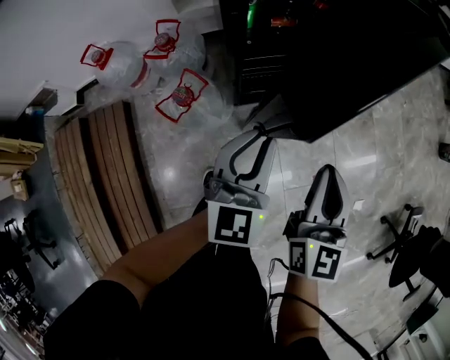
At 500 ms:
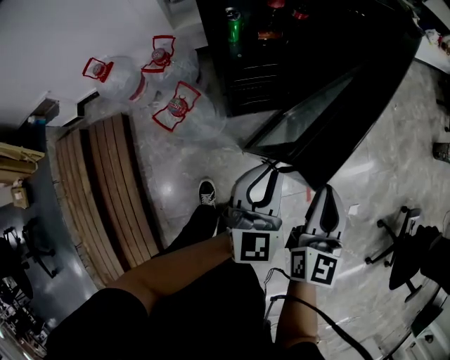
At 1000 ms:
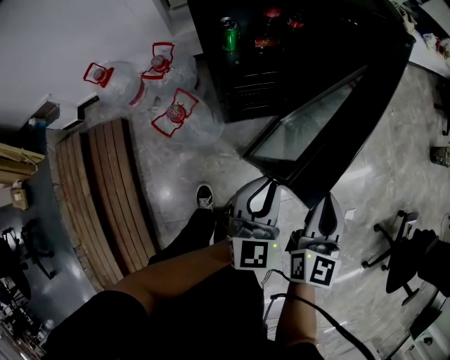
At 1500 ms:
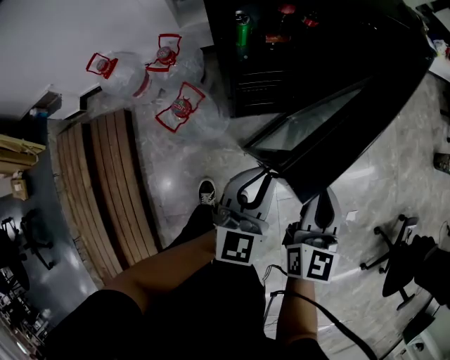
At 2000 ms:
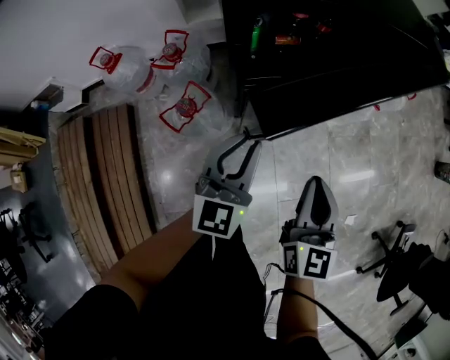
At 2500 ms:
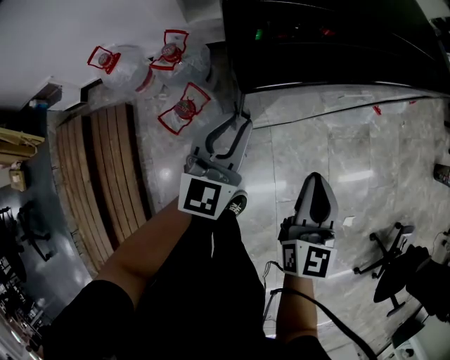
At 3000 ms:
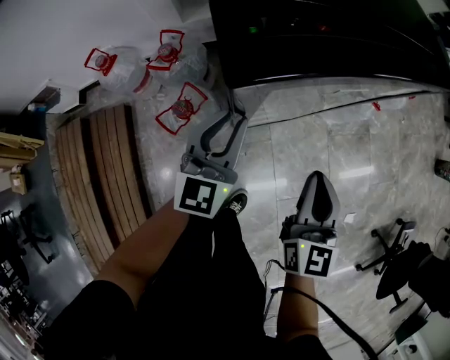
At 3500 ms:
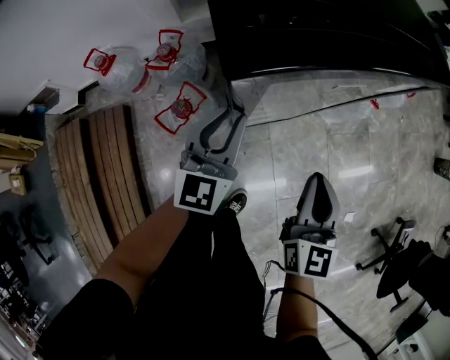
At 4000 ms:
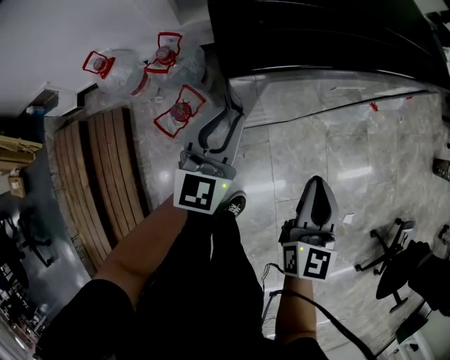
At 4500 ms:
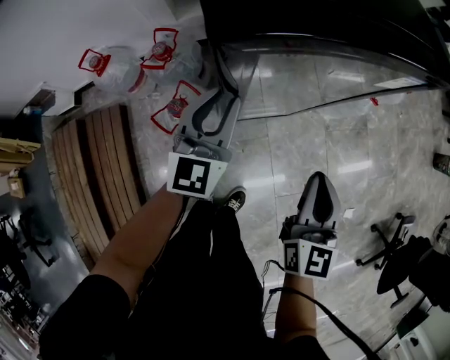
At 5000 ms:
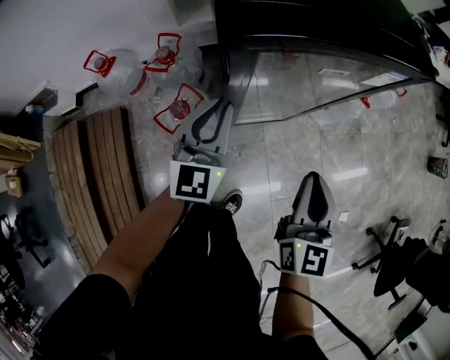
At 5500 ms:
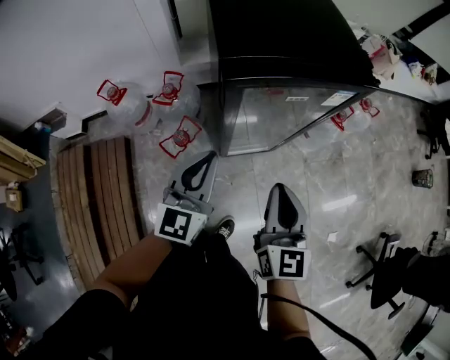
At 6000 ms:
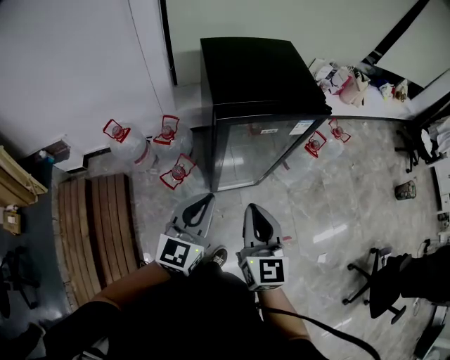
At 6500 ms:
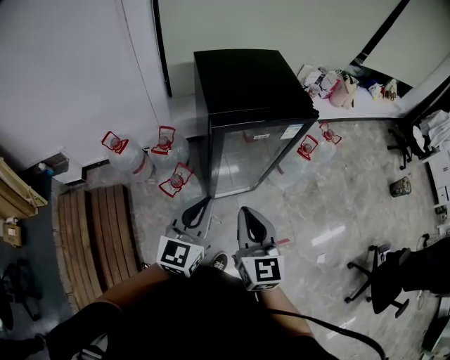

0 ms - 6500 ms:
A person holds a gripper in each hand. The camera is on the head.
0 ms - 2000 ms: The left gripper goes to the right and returns, approximately 10 cm each way. The right gripper moves approximately 5 cm to the right and comes back.
2000 ms - 4500 ms: The left gripper is displaced forward and to the left by some 10 cm.
4500 ms - 6500 ms: The left gripper is displaced upward and backward by roughly 30 cm. The right gripper heads upward, backward and to the left, covering about 30 cm.

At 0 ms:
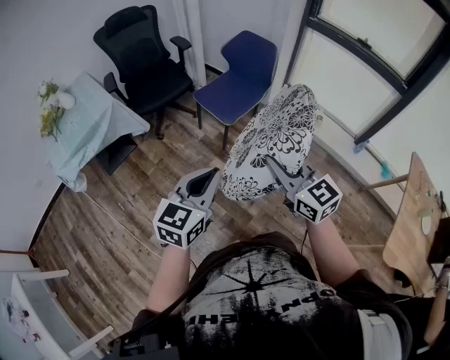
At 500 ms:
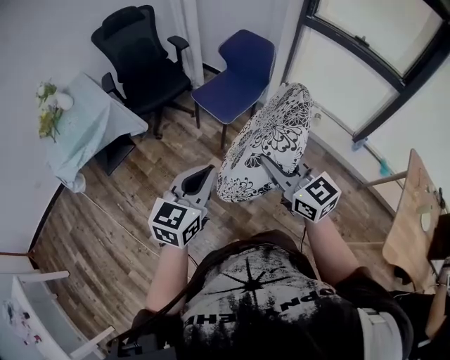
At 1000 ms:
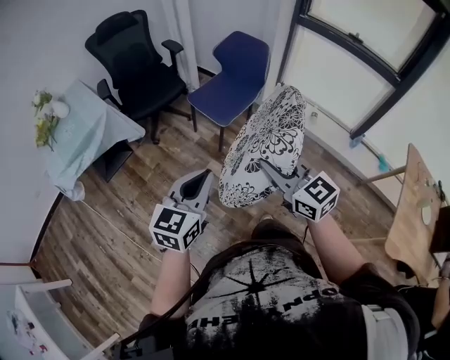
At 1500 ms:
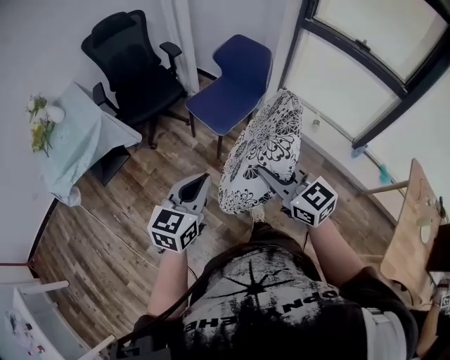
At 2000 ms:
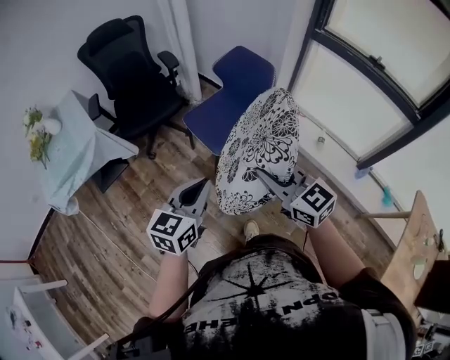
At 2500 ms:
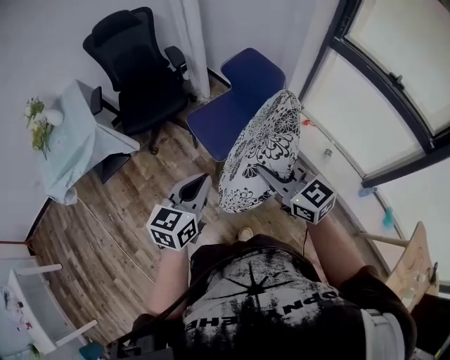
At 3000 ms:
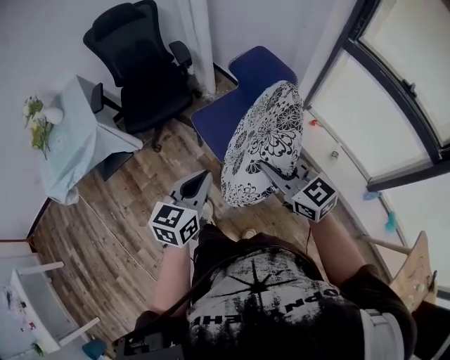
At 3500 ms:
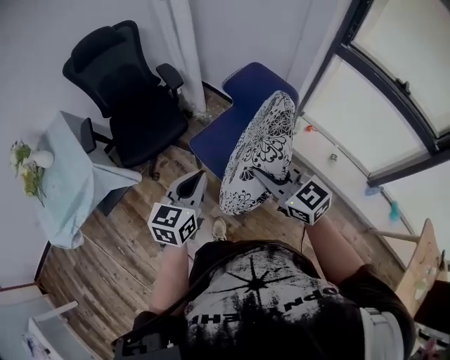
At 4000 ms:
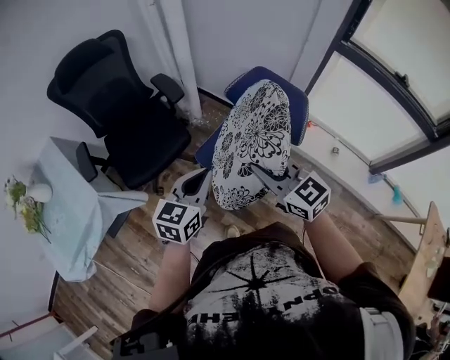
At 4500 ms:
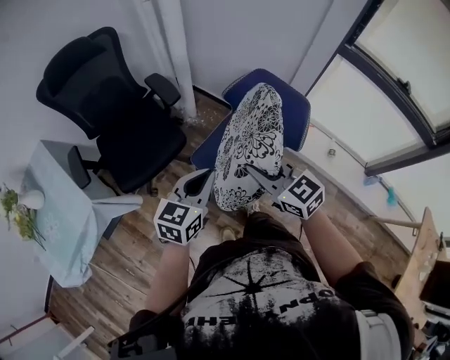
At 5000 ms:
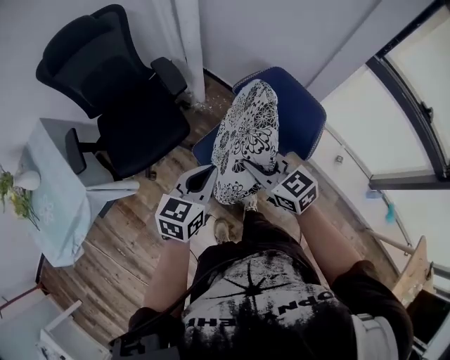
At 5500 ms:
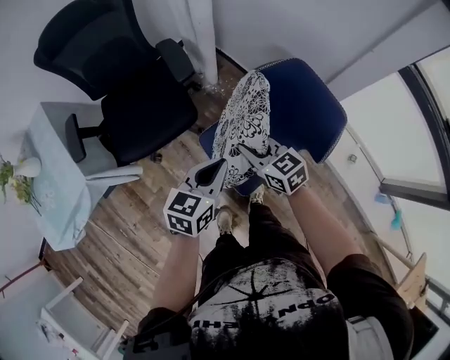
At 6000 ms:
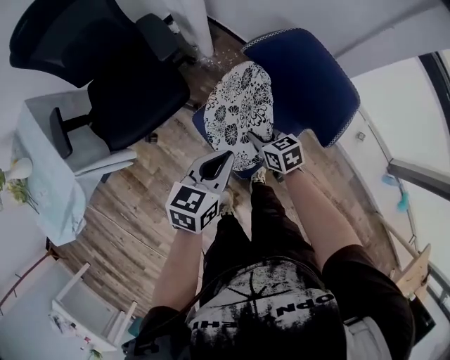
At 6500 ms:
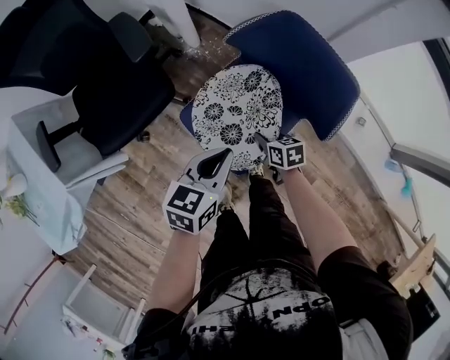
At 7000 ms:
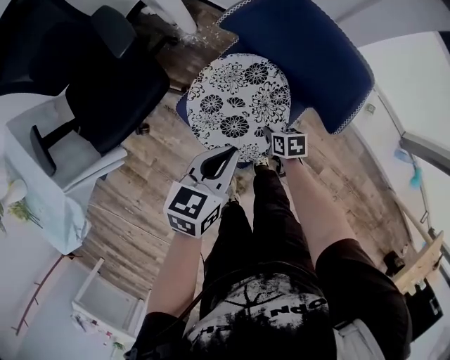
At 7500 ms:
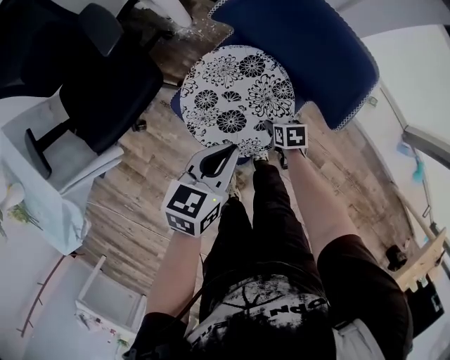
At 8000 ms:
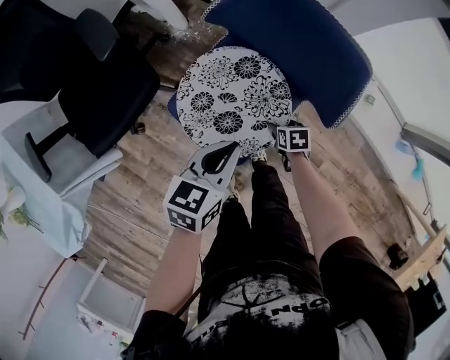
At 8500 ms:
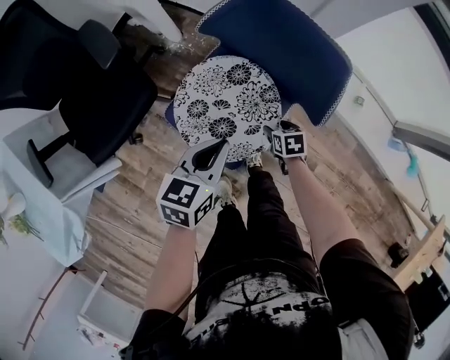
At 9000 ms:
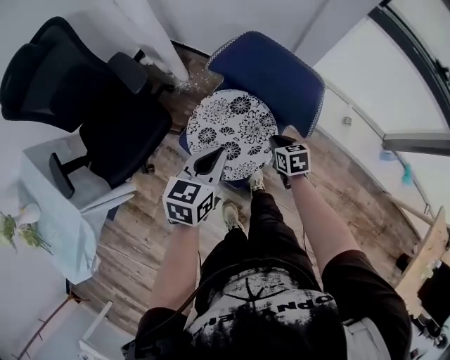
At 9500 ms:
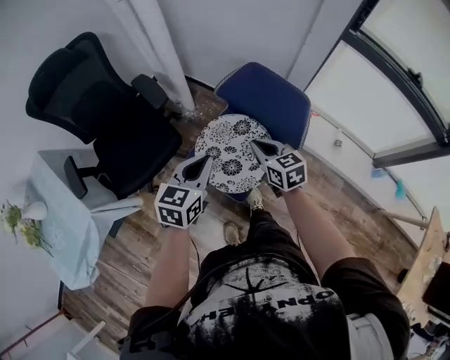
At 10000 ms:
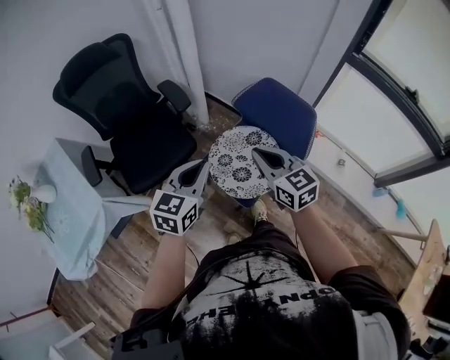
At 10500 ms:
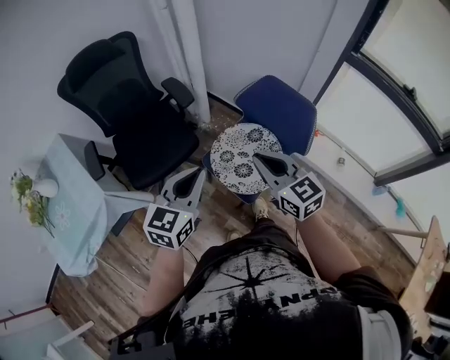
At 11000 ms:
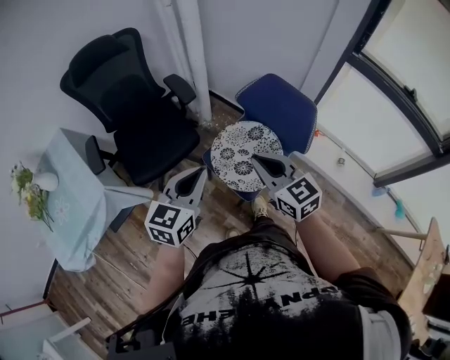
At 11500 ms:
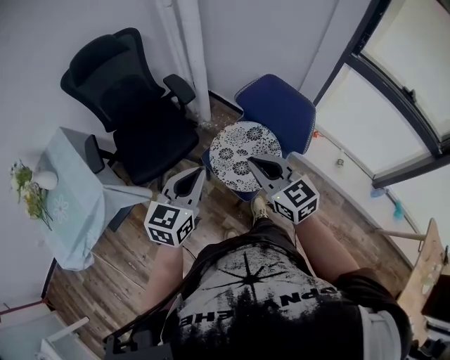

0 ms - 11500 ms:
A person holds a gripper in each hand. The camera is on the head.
0 ms - 2000 ms: Both grippers travel together forward and to the right, some 20 cm.
2000 ms - 4000 ms: Both grippers travel together forward, roughly 35 cm.
4000 ms - 6000 ms: The right gripper is displaced downward and forward by approximately 40 cm, and rotates roughly 40 degrees, while the left gripper shifts roughly 20 cm downward, forward and to the right.
6000 ms - 7500 ms: The right gripper heads downward and to the right, covering approximately 25 cm, turns by some 40 degrees, and opens; the left gripper is displaced downward and to the right by roughly 10 cm.
7500 ms - 9500 ms: The right gripper shifts approximately 40 cm upward, tilts its fingers some 40 degrees upward, and closes up; the left gripper goes about 20 cm upward and to the left, and rotates about 20 degrees.
9500 ms - 11500 ms: The right gripper travels upward, backward and to the left by about 25 cm, and turns by approximately 30 degrees, while the left gripper goes roughly 20 cm backward, upward and to the left.

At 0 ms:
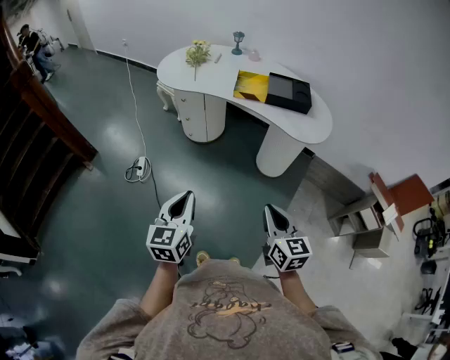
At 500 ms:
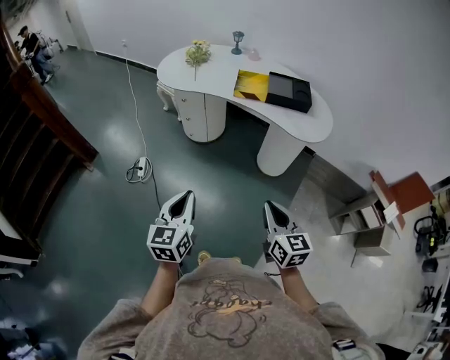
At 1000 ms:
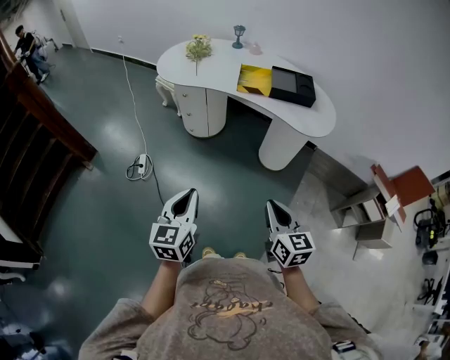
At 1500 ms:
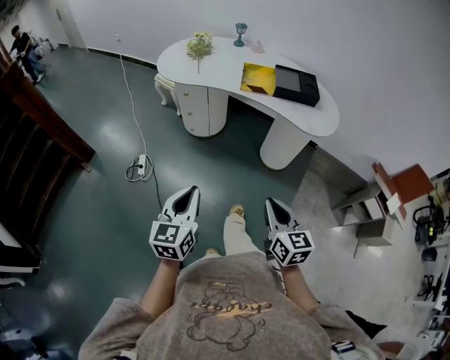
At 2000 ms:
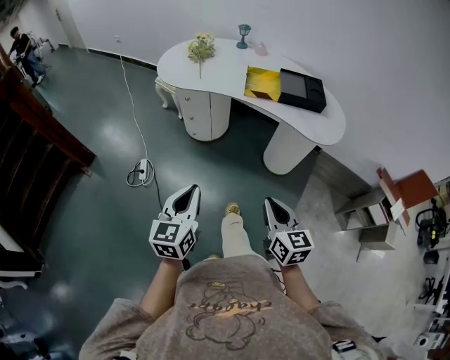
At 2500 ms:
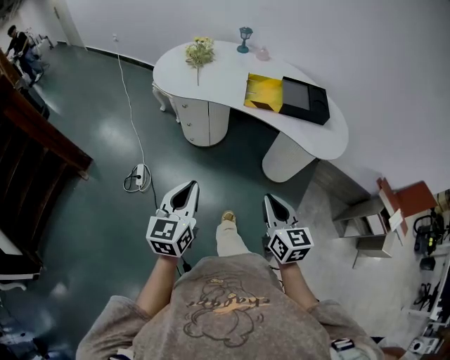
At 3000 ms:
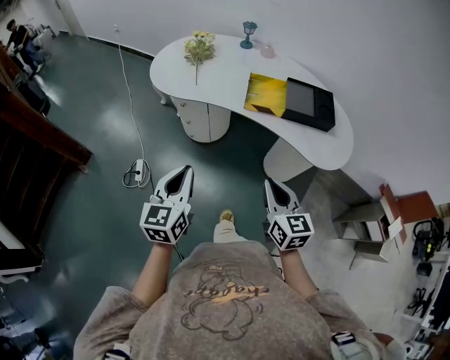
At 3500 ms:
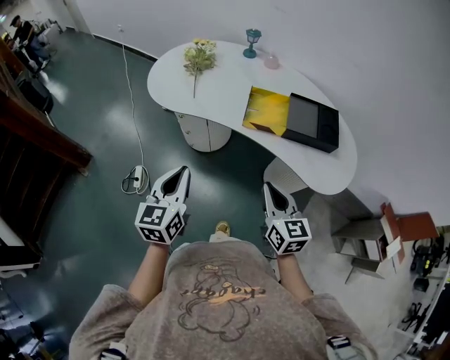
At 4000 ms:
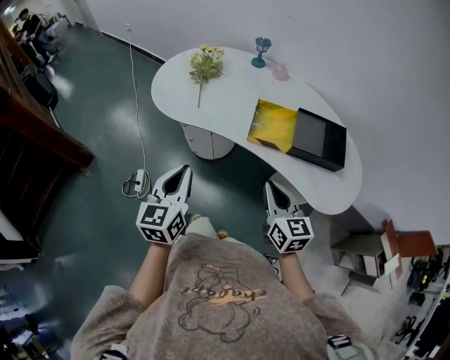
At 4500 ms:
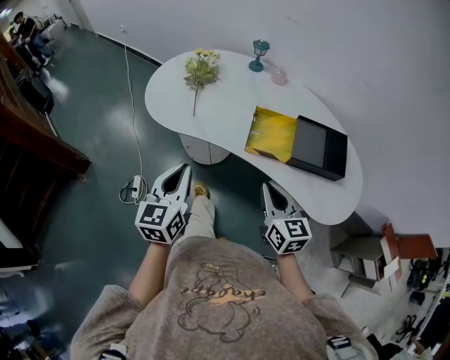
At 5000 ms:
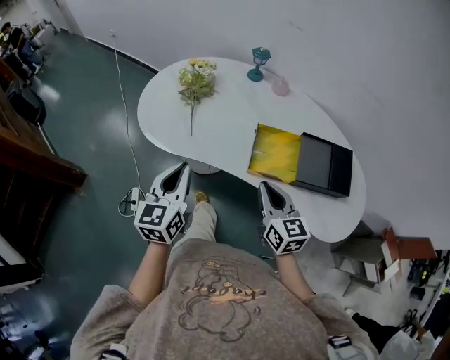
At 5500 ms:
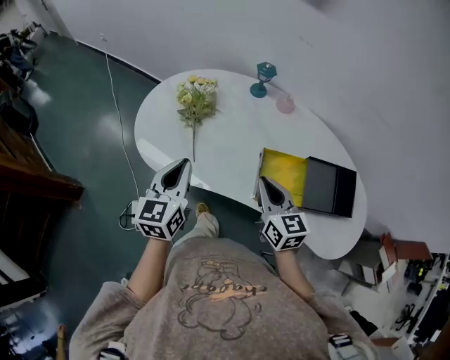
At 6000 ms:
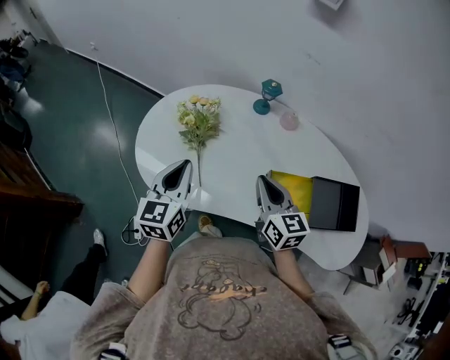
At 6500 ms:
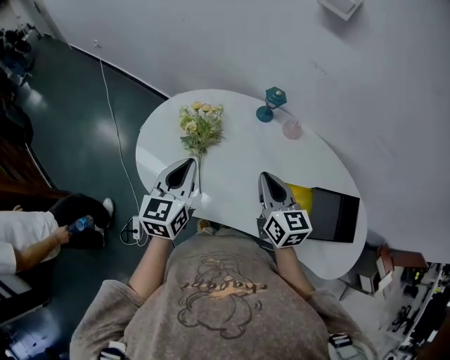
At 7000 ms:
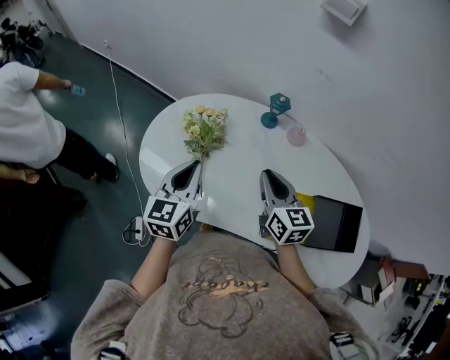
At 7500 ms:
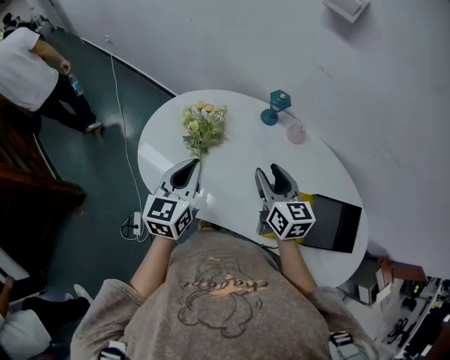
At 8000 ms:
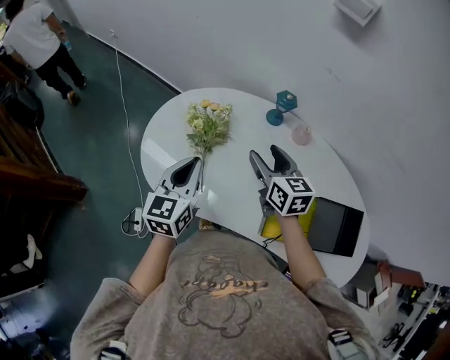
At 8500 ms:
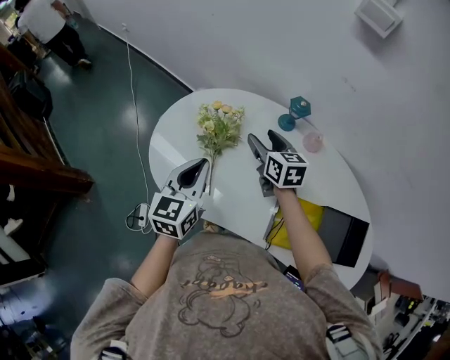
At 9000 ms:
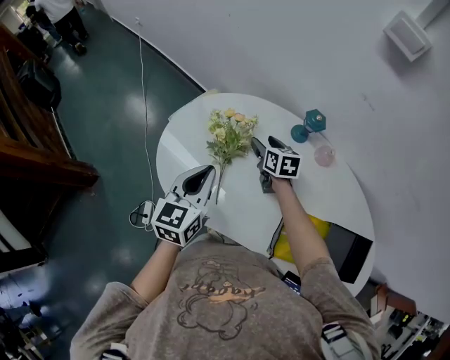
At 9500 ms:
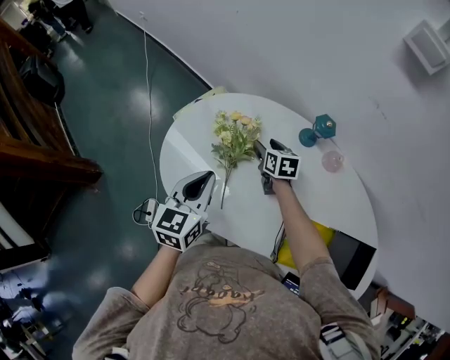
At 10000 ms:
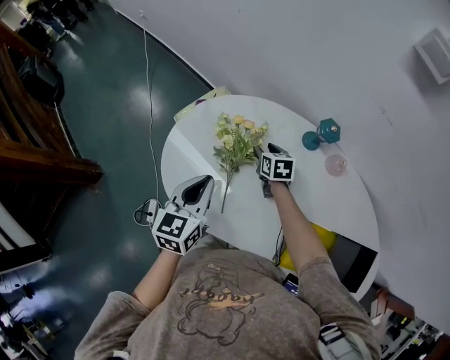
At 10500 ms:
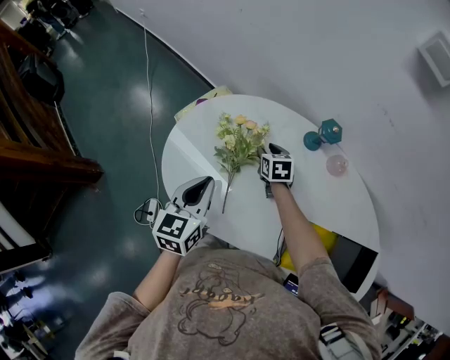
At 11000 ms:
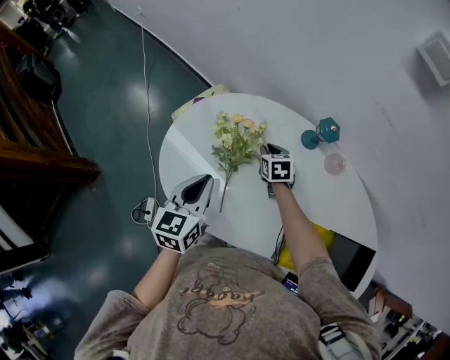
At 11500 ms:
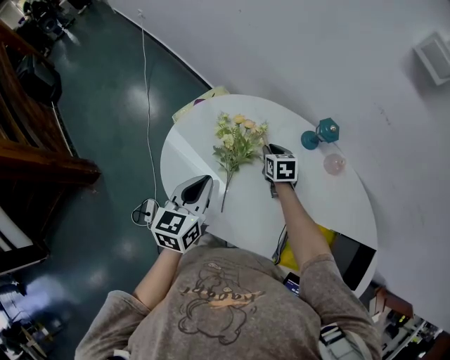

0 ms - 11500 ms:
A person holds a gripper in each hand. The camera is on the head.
0 ms - 2000 ms: The right gripper travels to the left and forward by some 10 cm; the left gripper is displaced forward and to the left by approximately 10 cm.
2000 ms - 4000 ms: Both grippers move forward, roughly 35 cm.
4000 ms - 6000 ms: The two grippers go approximately 35 cm forward.
6000 ms - 7500 ms: The right gripper heads forward, covering about 5 cm, and opens its fingers.
7500 ms - 9500 ms: The right gripper travels forward, downward and to the left by some 30 cm, and turns by some 30 degrees. Meanwhile the left gripper moves roughly 5 cm.
9500 ms - 11500 ms: The right gripper closes up.
